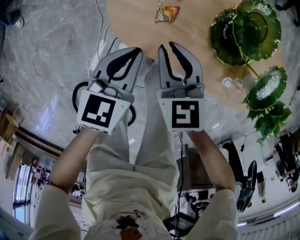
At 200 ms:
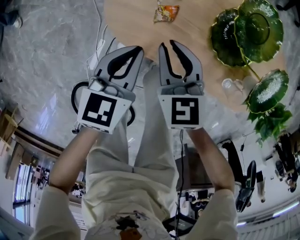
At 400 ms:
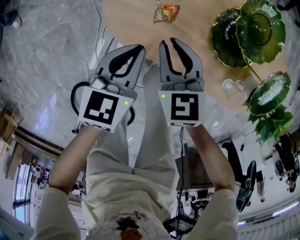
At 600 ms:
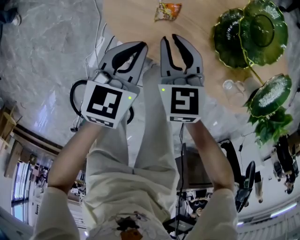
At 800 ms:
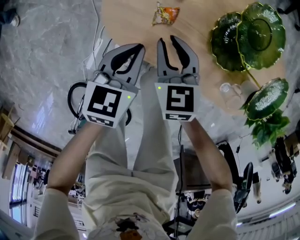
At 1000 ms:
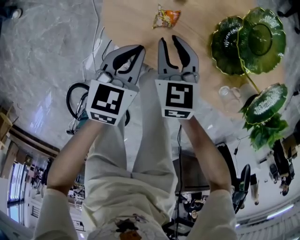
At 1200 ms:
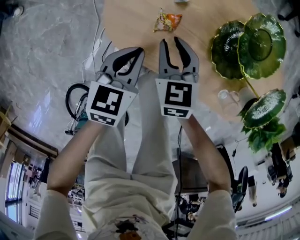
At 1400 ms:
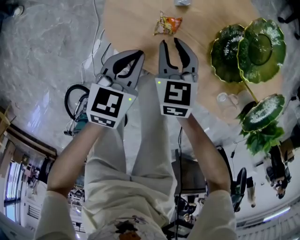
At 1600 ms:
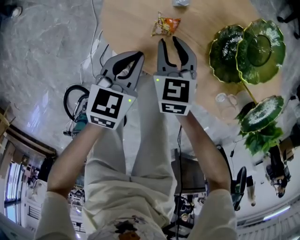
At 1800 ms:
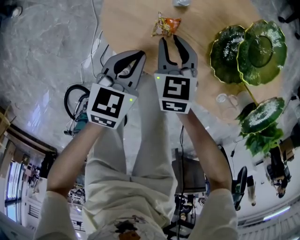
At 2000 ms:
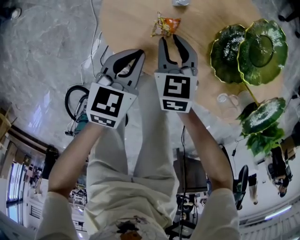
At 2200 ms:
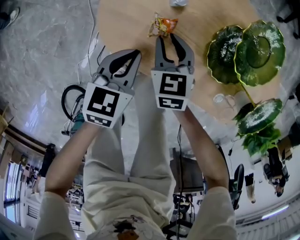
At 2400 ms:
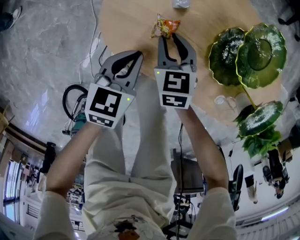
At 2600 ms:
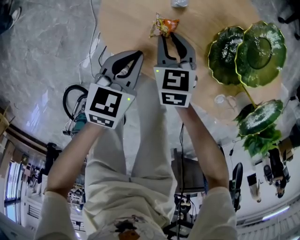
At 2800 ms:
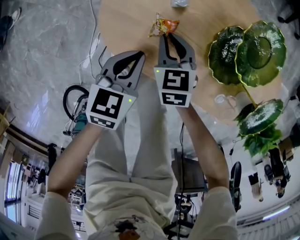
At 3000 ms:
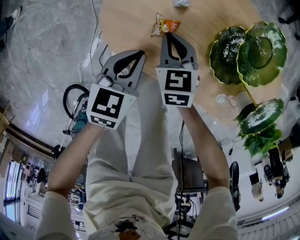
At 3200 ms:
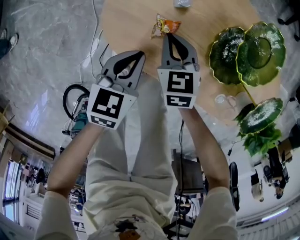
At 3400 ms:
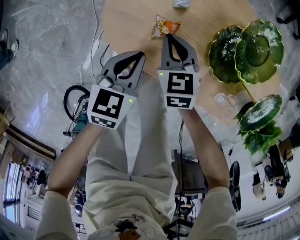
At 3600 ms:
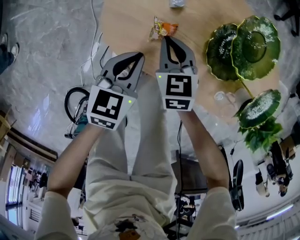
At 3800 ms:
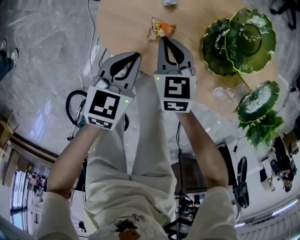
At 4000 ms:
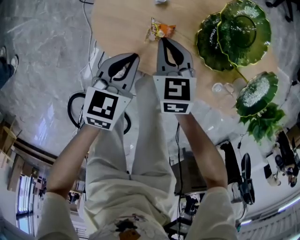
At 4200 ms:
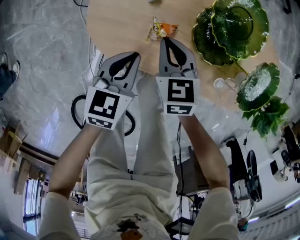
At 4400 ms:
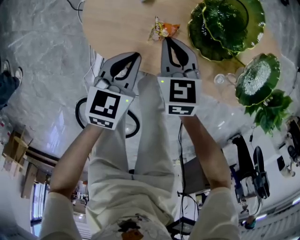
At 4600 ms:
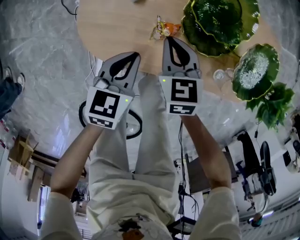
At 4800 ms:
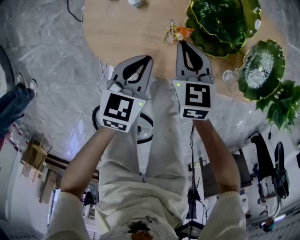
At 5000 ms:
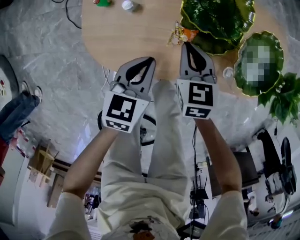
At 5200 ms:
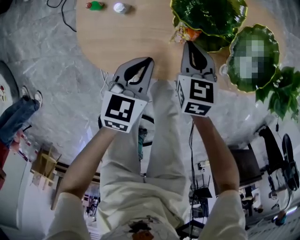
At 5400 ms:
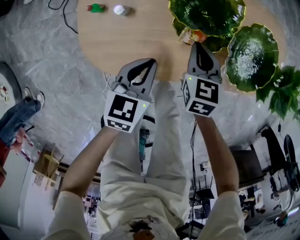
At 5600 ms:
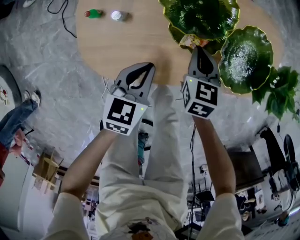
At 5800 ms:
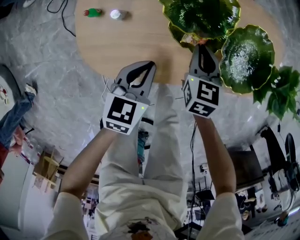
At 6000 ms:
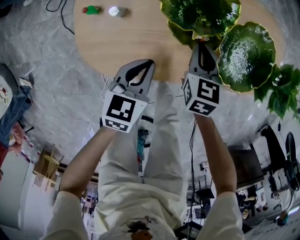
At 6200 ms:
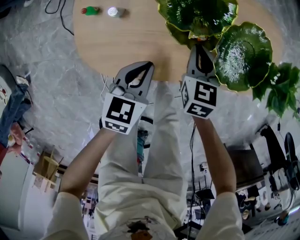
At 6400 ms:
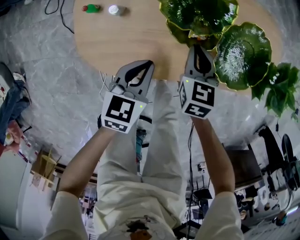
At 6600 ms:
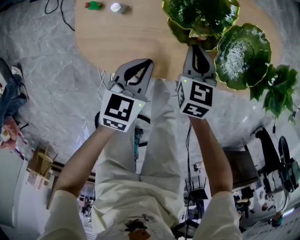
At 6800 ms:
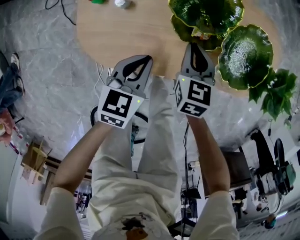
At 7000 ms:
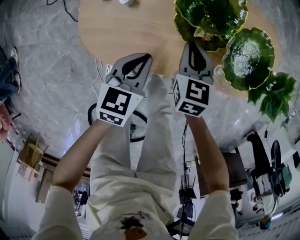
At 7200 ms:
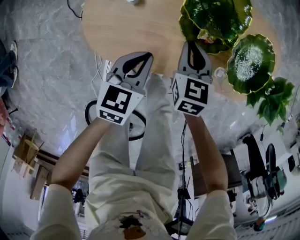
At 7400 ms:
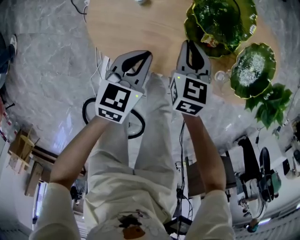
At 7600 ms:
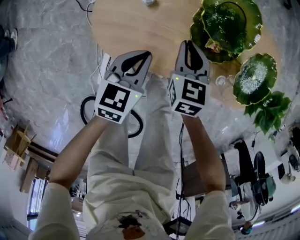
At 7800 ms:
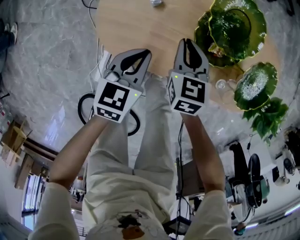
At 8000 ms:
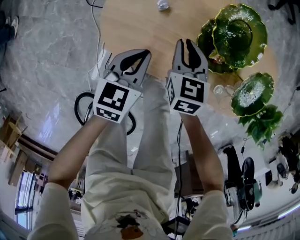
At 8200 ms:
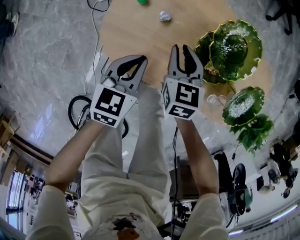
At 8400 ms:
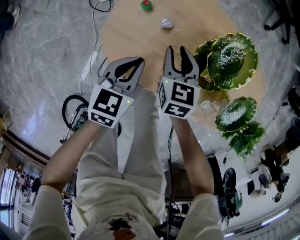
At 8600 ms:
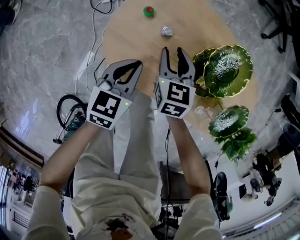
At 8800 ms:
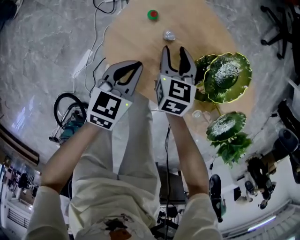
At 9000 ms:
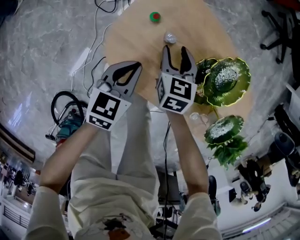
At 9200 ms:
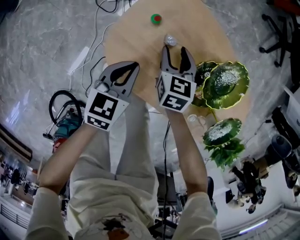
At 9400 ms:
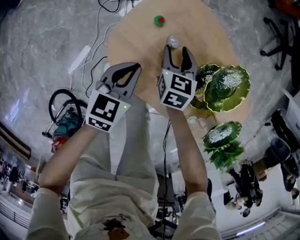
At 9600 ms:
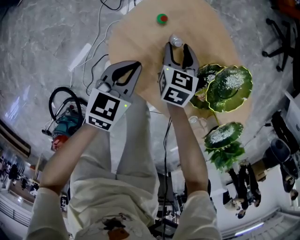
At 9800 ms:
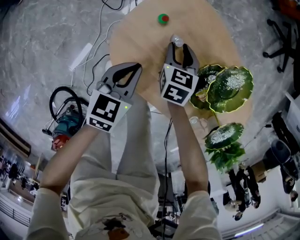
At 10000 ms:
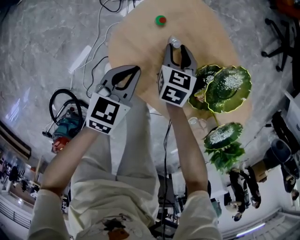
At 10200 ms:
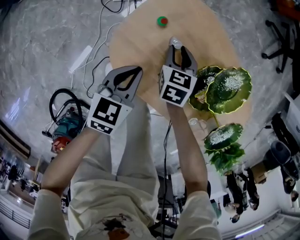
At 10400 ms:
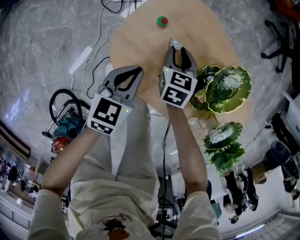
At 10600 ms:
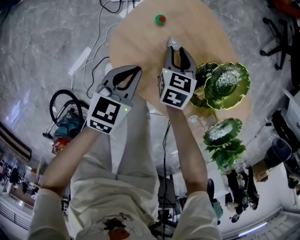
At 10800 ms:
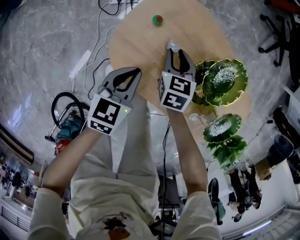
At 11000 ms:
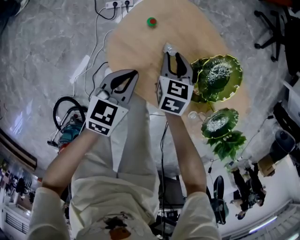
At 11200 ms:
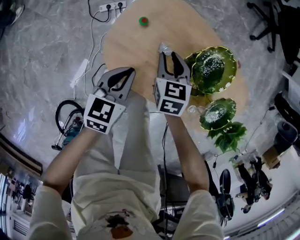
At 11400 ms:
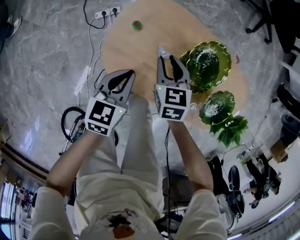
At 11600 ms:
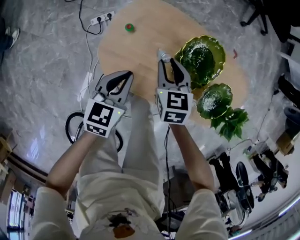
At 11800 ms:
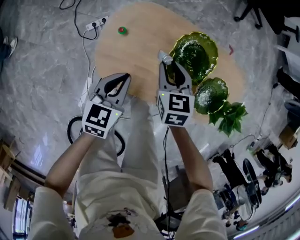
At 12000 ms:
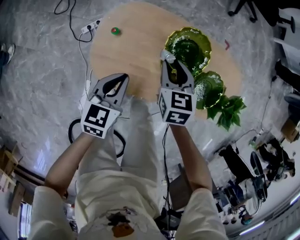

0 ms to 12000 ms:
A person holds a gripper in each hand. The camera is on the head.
0 ms to 1600 ms: Both grippers travel together downward, about 10 cm.
1600 ms to 3000 ms: The grippers stay close to where they were, moving slightly.
3000 ms to 4400 ms: The left gripper moves to the right, approximately 5 cm. The right gripper travels to the right and upward by roughly 10 cm.
4400 ms to 6000 ms: The right gripper moves to the right, about 15 cm, and turns by roughly 30 degrees, while the left gripper goes about 5 cm to the right.
6000 ms to 7600 ms: The right gripper goes roughly 10 cm to the left. Meanwhile the left gripper moves to the left, some 5 cm.
7600 ms to 9000 ms: Both grippers travel together to the left and forward, approximately 15 cm. The right gripper opens its fingers.
9000 ms to 10400 ms: The grippers move only a little.
10400 ms to 12000 ms: The left gripper is displaced upward and to the right by roughly 15 cm, while the right gripper goes approximately 20 cm upward and to the right.

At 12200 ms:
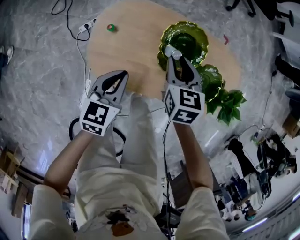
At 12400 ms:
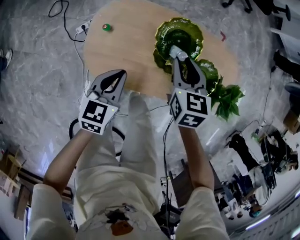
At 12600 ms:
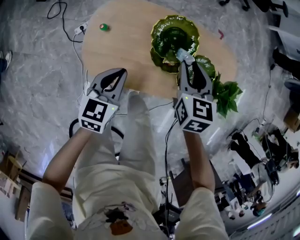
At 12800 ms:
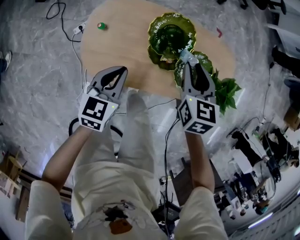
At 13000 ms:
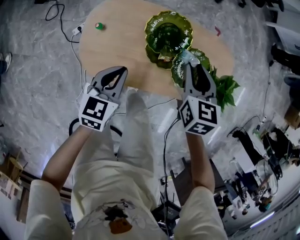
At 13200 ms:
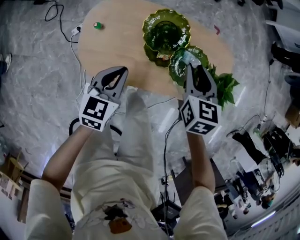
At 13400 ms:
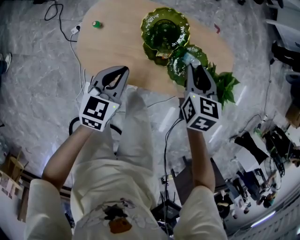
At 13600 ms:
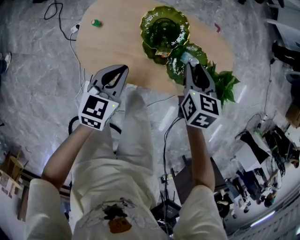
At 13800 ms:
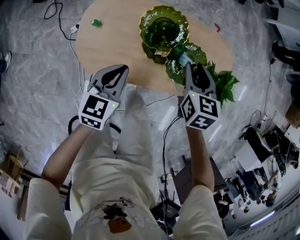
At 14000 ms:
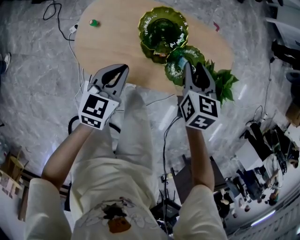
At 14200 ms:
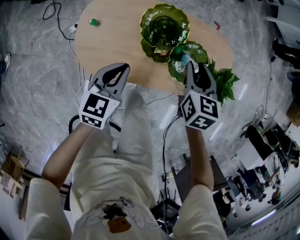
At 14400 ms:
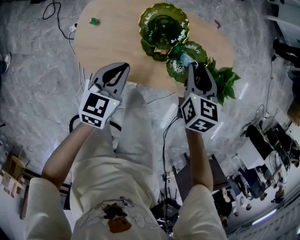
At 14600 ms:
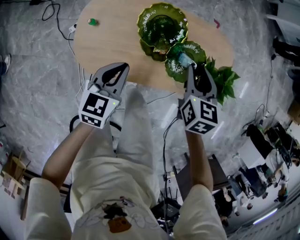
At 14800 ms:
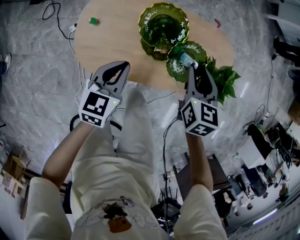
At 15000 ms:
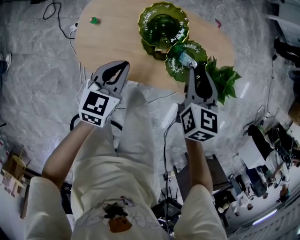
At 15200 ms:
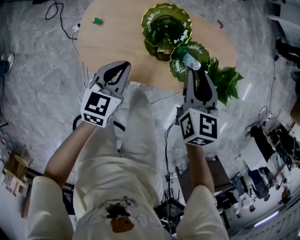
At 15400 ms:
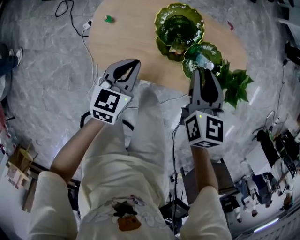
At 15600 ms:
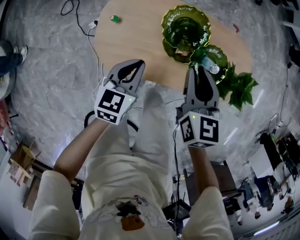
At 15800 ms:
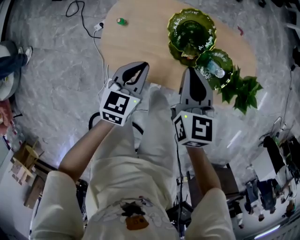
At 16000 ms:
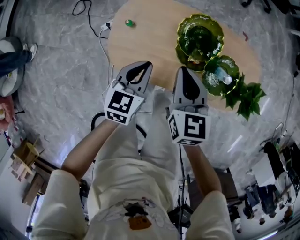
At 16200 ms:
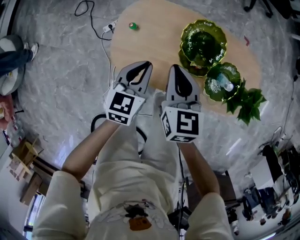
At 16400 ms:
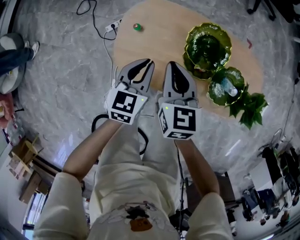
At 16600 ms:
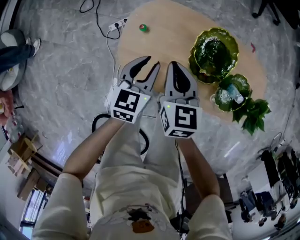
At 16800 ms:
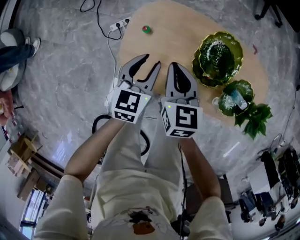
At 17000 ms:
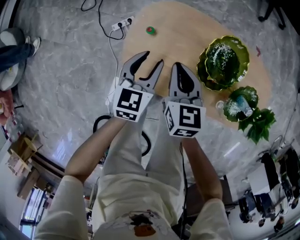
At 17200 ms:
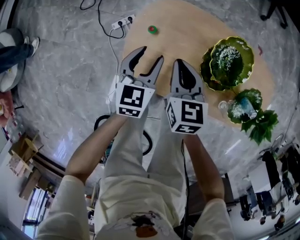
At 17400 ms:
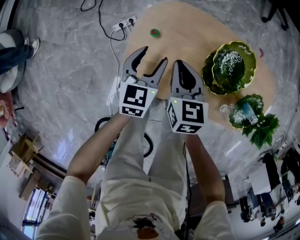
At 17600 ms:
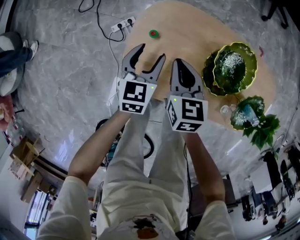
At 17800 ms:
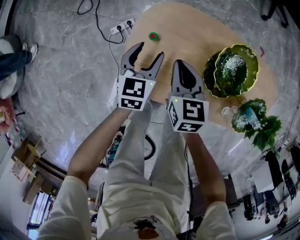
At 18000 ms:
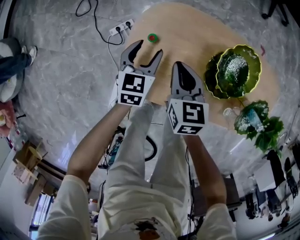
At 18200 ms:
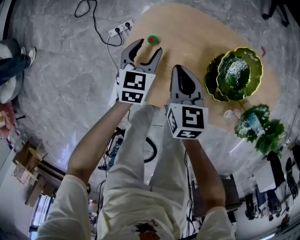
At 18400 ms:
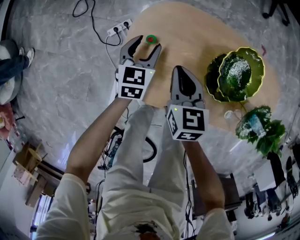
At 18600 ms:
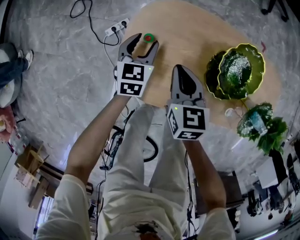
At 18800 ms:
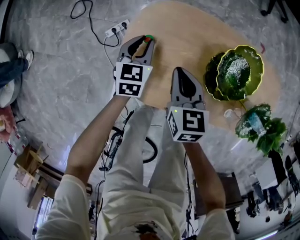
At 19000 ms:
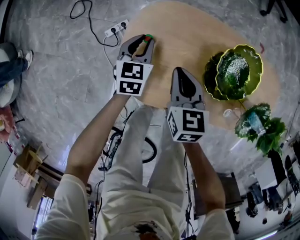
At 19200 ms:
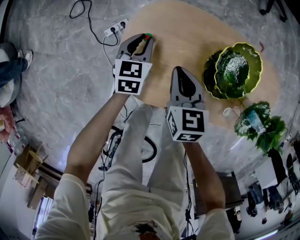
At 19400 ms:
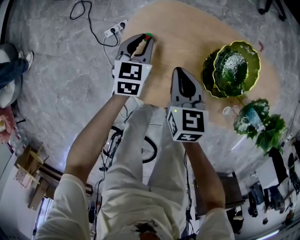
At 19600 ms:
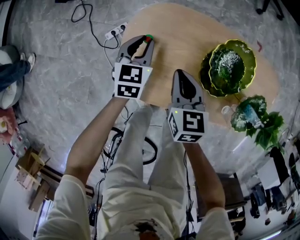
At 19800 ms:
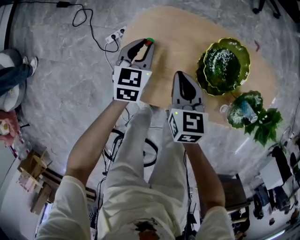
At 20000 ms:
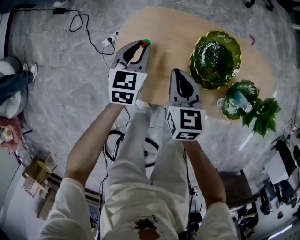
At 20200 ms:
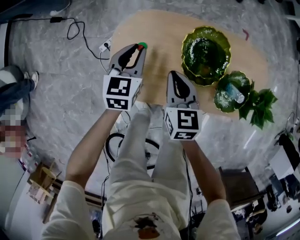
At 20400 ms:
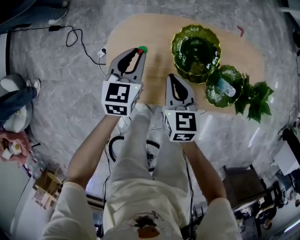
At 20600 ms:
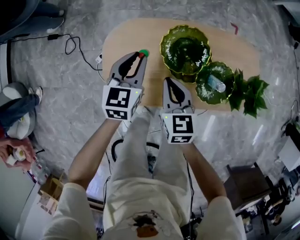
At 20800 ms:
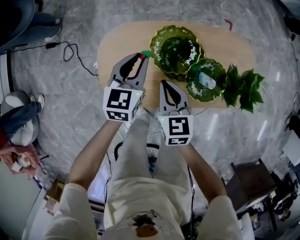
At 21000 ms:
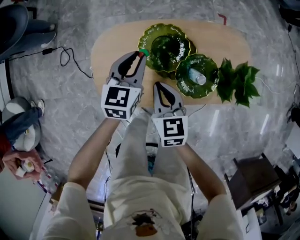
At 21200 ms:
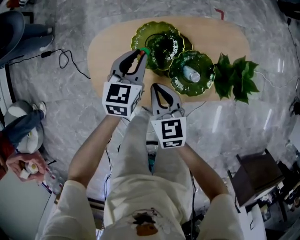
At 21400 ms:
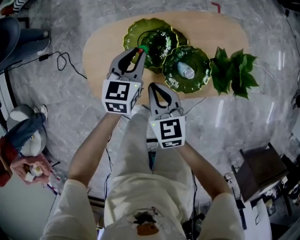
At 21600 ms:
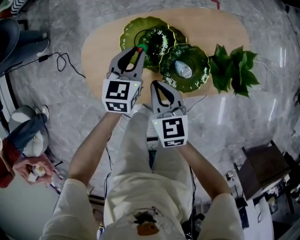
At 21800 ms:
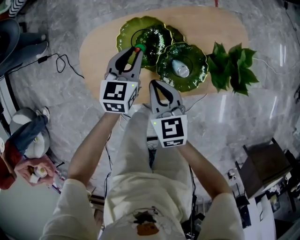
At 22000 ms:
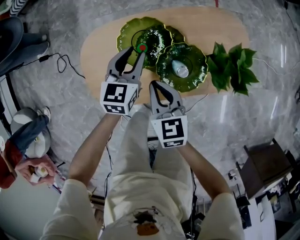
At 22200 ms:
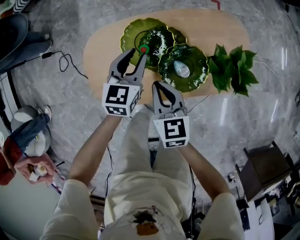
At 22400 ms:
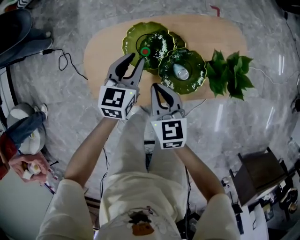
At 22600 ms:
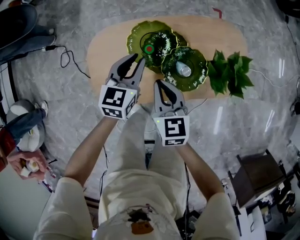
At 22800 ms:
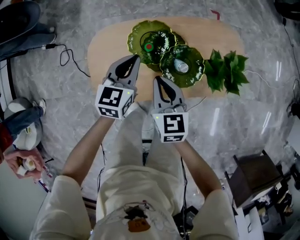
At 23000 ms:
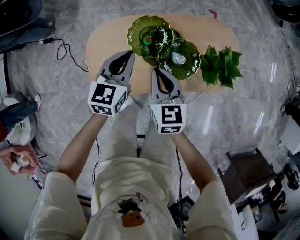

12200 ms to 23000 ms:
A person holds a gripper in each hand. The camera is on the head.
12200 ms to 13800 ms: The right gripper heads to the right, covering some 15 cm. The left gripper moves to the right, roughly 10 cm.
13800 ms to 15200 ms: The right gripper shifts by approximately 5 cm.
15200 ms to 16800 ms: The right gripper goes about 25 cm to the left, and closes up; the left gripper travels to the left by about 15 cm, and opens.
16800 ms to 18400 ms: The right gripper shifts about 10 cm downward. Meanwhile the left gripper moves downward, forward and to the left, about 20 cm, and opens.
18400 ms to 20000 ms: The right gripper goes approximately 10 cm to the right and upward. Meanwhile the left gripper is displaced upward and to the right by approximately 10 cm, and closes its fingers.
20000 ms to 21400 ms: The right gripper goes roughly 15 cm to the right, while the left gripper shifts approximately 25 cm to the right.
21400 ms to 23000 ms: The left gripper moves upward and backward, about 10 cm. The right gripper is displaced upward by roughly 10 cm.

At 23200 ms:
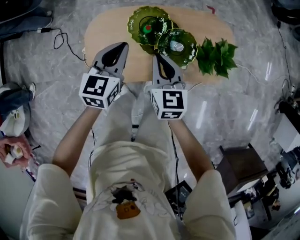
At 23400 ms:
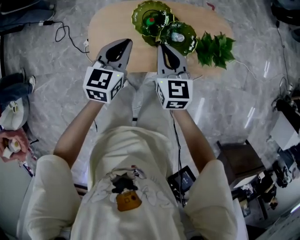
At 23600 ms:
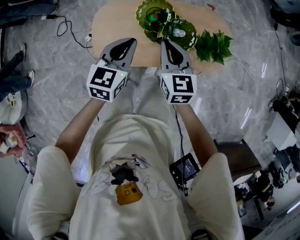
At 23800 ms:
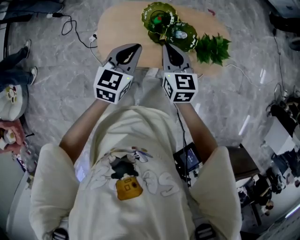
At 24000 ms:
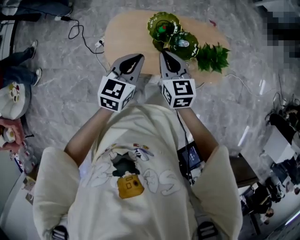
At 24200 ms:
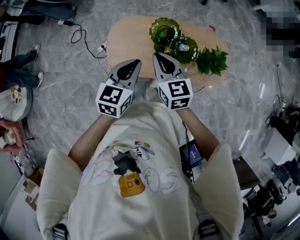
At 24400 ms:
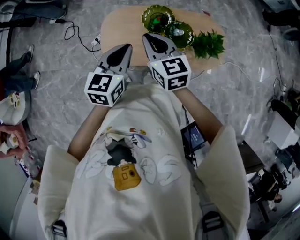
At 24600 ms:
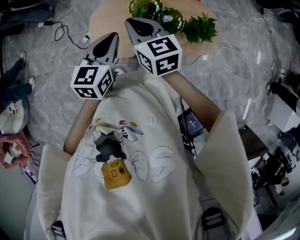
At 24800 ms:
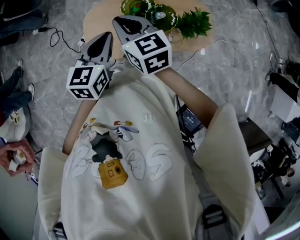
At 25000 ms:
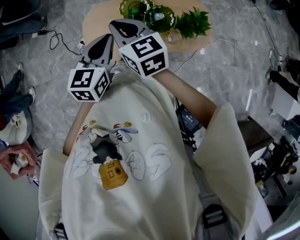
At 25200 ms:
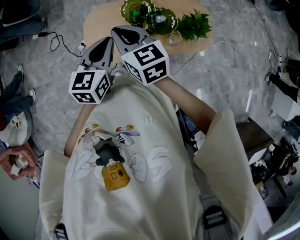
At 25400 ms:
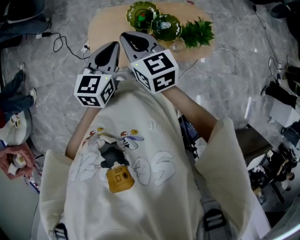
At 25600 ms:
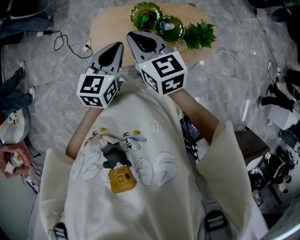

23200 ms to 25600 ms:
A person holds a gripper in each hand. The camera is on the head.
23200 ms to 24400 ms: The left gripper goes approximately 20 cm upward and backward. Meanwhile the right gripper travels upward and to the left by some 20 cm.
24400 ms to 25600 ms: The right gripper ends up about 5 cm from where it was.
